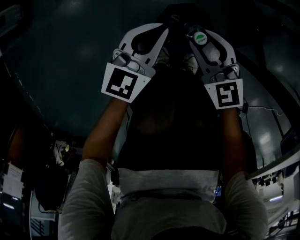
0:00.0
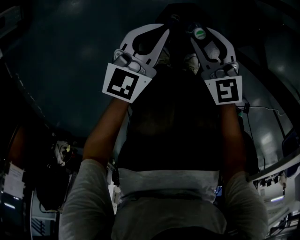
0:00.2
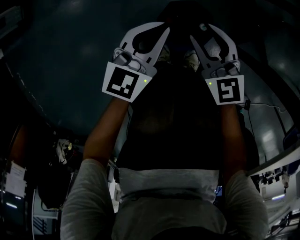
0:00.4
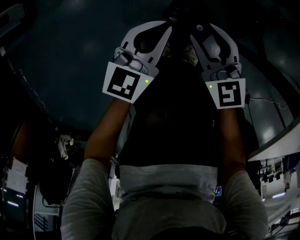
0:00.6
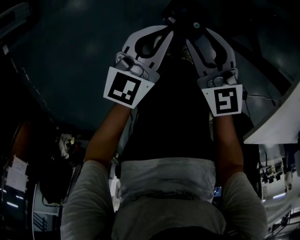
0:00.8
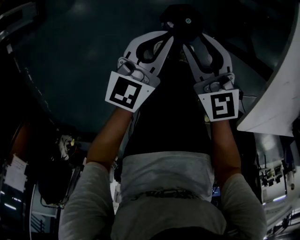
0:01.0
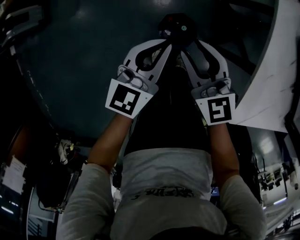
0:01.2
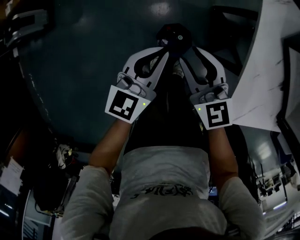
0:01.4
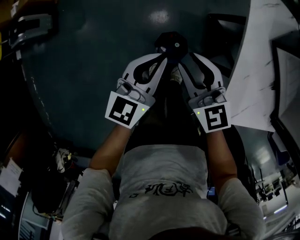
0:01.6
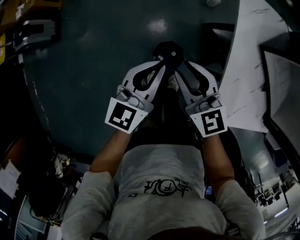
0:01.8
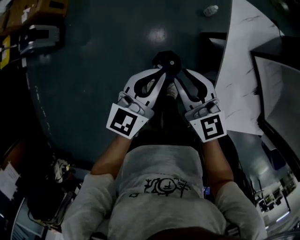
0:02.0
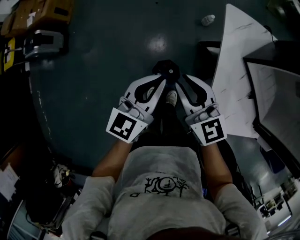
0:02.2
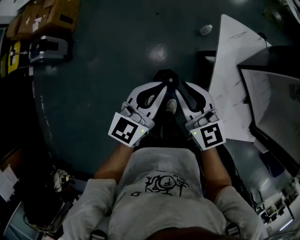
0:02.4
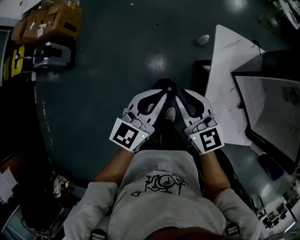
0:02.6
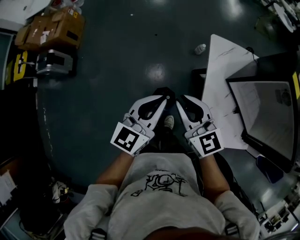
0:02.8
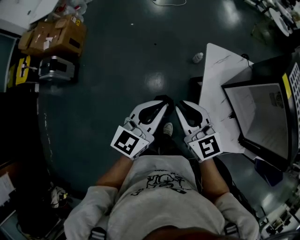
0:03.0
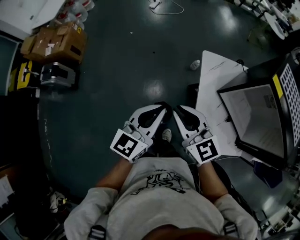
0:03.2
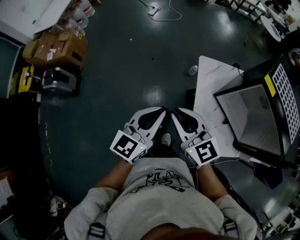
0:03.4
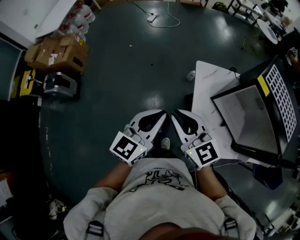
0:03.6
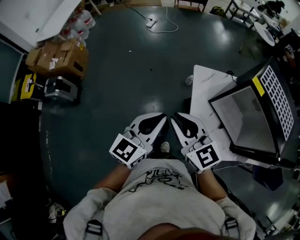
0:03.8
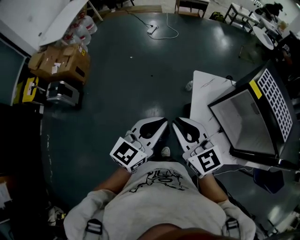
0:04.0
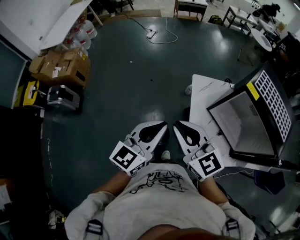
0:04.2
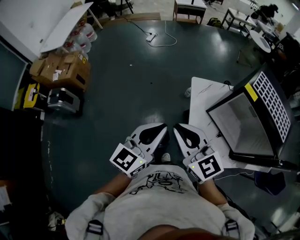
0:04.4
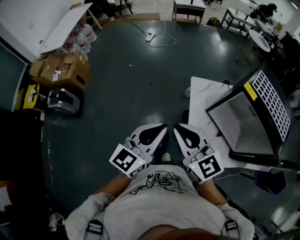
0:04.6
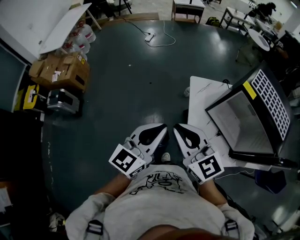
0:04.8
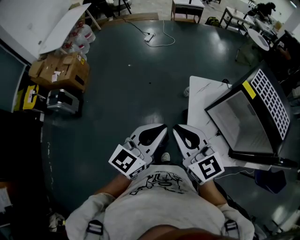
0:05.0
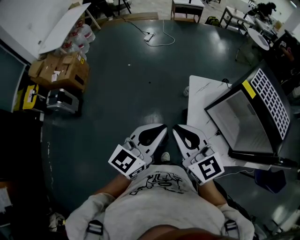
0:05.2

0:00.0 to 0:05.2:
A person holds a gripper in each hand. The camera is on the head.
0:00.0 to 0:01.8: The grippers both shift upward by some 40 cm.
0:01.8 to 0:03.4: The two grippers go roughly 30 cm upward.
0:03.4 to 0:05.2: The grippers both shift upward by approximately 10 cm.

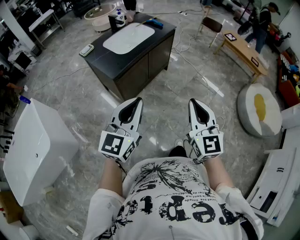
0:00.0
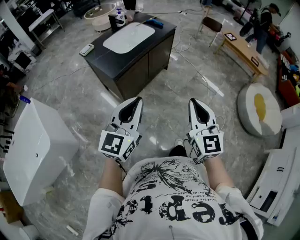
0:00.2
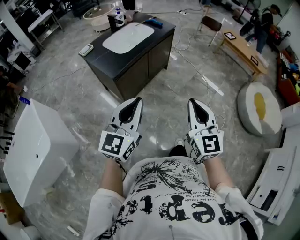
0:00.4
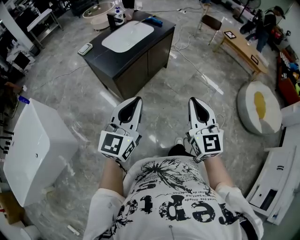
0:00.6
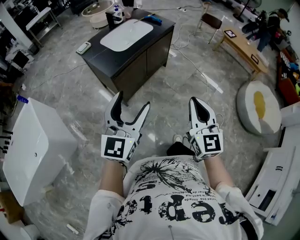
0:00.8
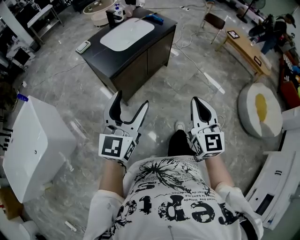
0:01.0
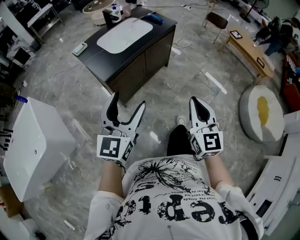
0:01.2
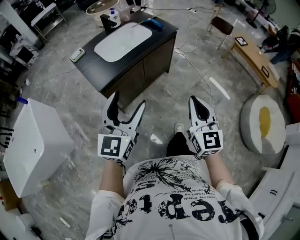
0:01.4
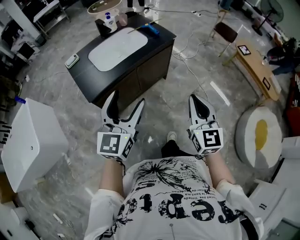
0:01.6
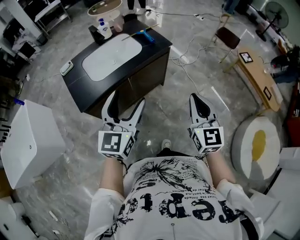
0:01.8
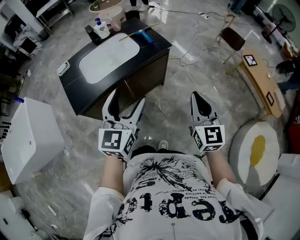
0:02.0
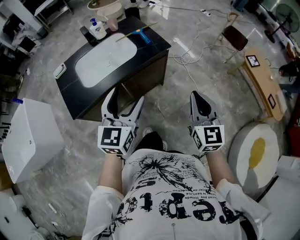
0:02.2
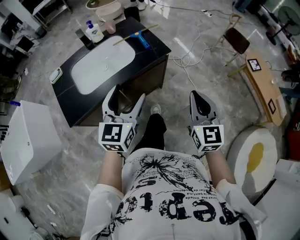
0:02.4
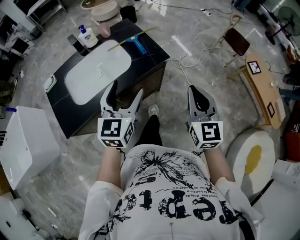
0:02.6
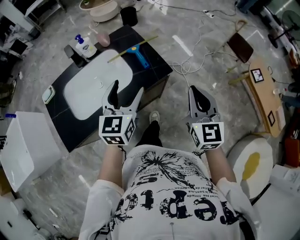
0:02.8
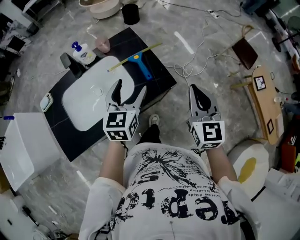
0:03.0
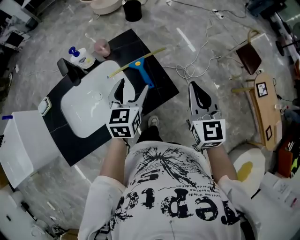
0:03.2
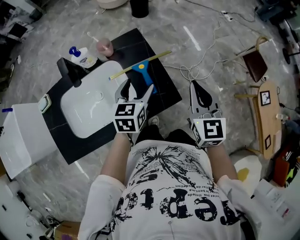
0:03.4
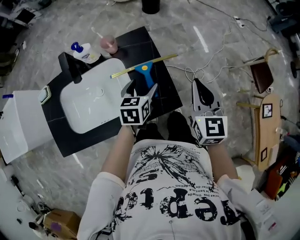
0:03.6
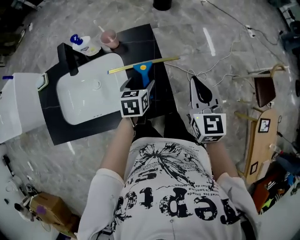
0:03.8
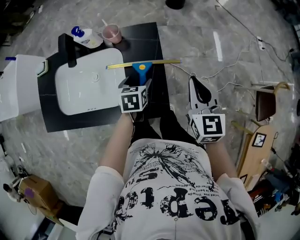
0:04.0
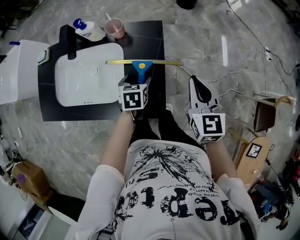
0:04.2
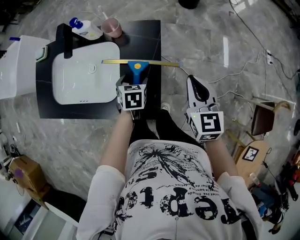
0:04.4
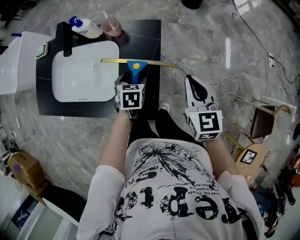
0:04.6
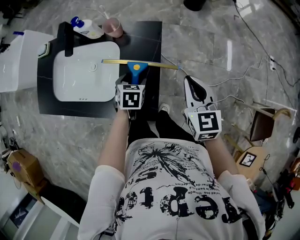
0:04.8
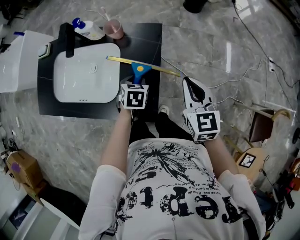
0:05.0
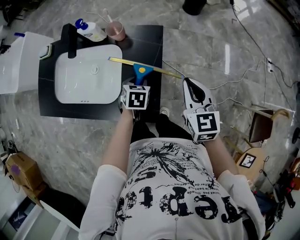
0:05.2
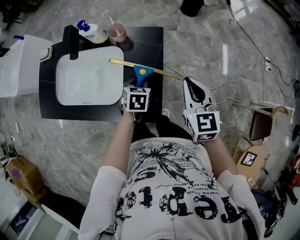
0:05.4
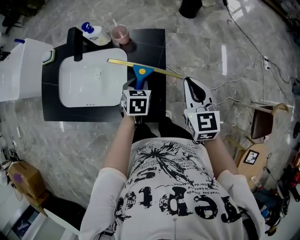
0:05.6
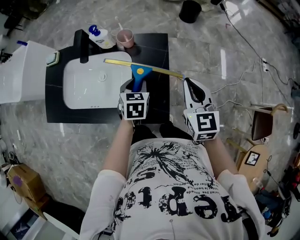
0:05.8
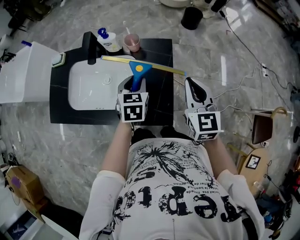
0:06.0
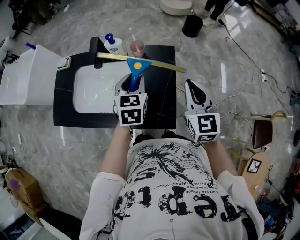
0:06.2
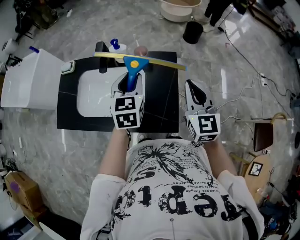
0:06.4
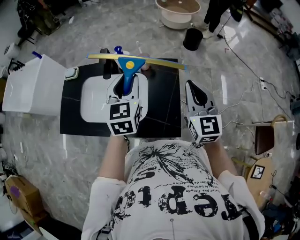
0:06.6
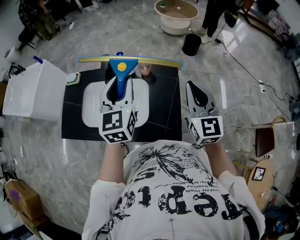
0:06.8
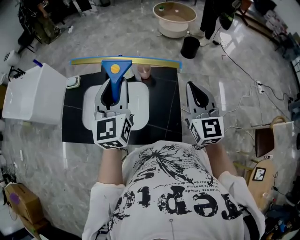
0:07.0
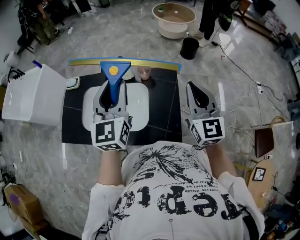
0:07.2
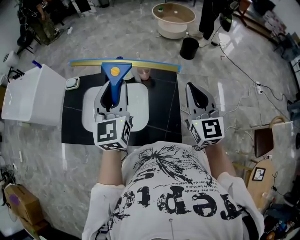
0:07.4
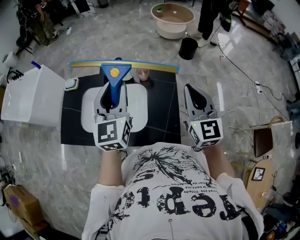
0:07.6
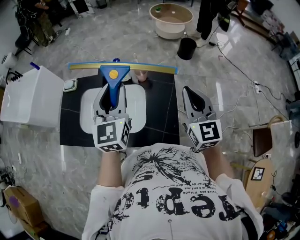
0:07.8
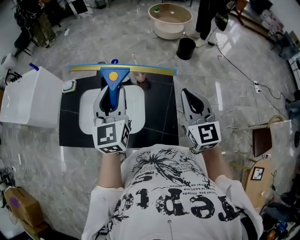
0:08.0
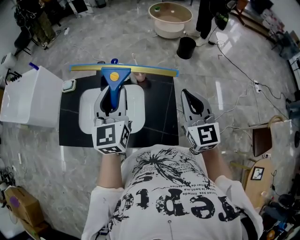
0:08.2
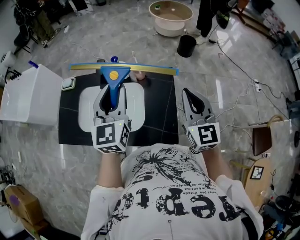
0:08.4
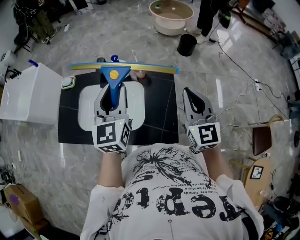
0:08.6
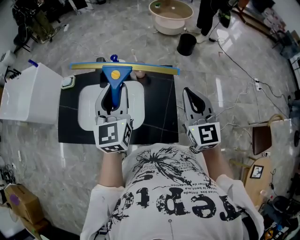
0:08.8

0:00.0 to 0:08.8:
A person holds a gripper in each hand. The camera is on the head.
0:00.0 to 0:01.4: The right gripper travels forward and to the right by approximately 25 cm. The left gripper shifts about 20 cm forward, and opens up.
0:01.4 to 0:03.0: The pair of grippers is taken forward, some 80 cm. The left gripper rotates roughly 20 degrees.
0:03.0 to 0:04.4: The right gripper ends up about 35 cm from where it was, and rotates some 40 degrees; the left gripper heads downward, covering approximately 25 cm, and tips its fingers downward by some 40 degrees.
0:04.4 to 0:05.8: The left gripper goes roughly 10 cm upward, and closes its fingers. Meanwhile the right gripper goes approximately 5 cm to the left.
0:05.8 to 0:07.4: The left gripper is displaced upward and to the left by some 35 cm, and tilts its fingers roughly 50 degrees upward. Meanwhile the right gripper is displaced upward and to the left by roughly 15 cm.
0:07.4 to 0:08.8: There are only small adjustments of the grippers.

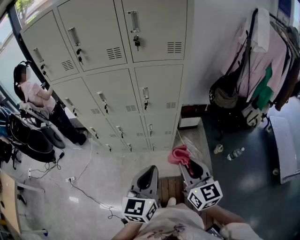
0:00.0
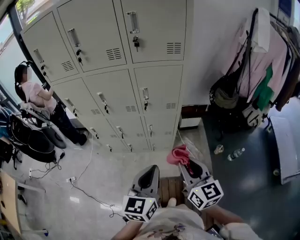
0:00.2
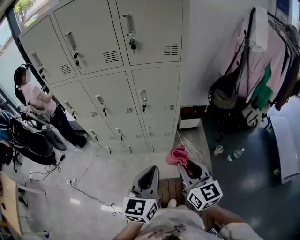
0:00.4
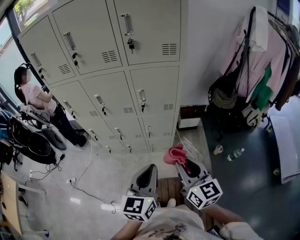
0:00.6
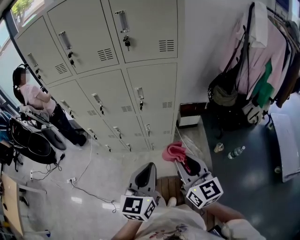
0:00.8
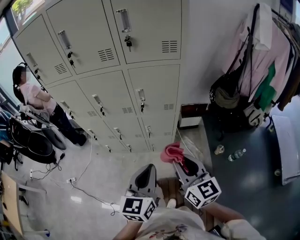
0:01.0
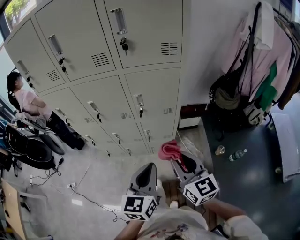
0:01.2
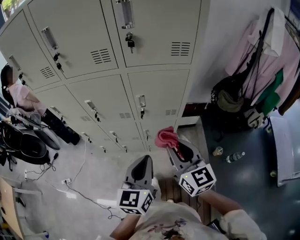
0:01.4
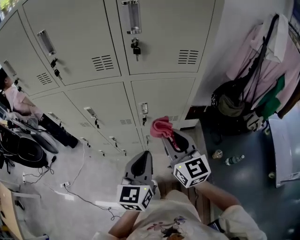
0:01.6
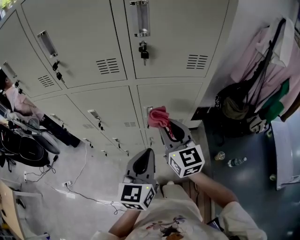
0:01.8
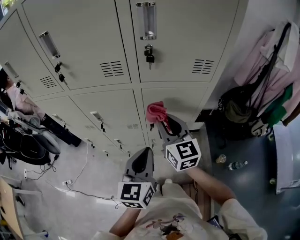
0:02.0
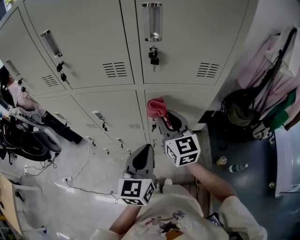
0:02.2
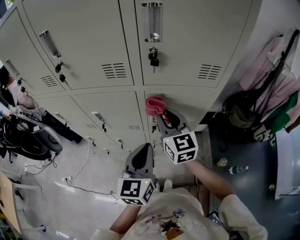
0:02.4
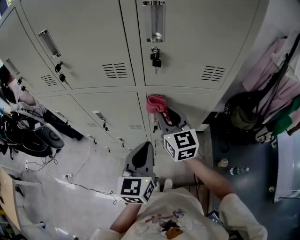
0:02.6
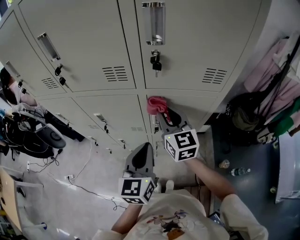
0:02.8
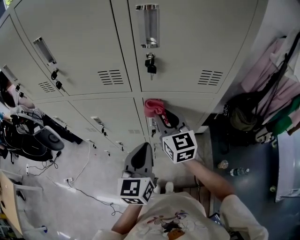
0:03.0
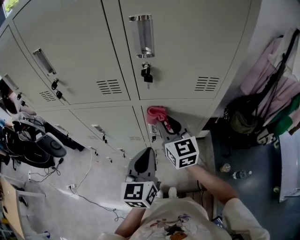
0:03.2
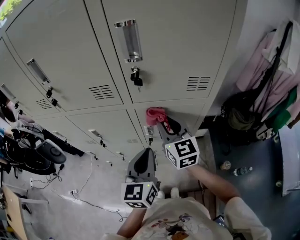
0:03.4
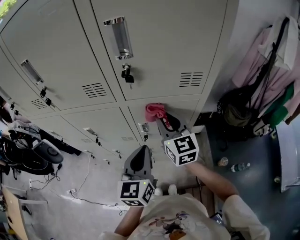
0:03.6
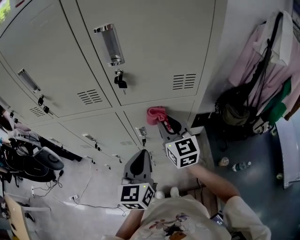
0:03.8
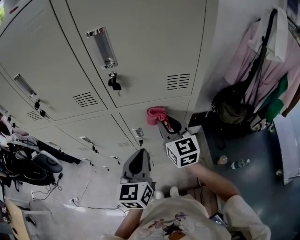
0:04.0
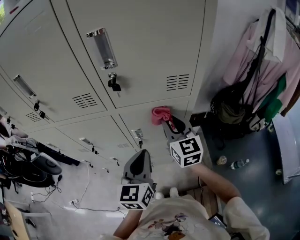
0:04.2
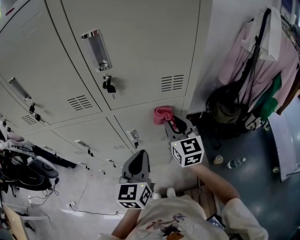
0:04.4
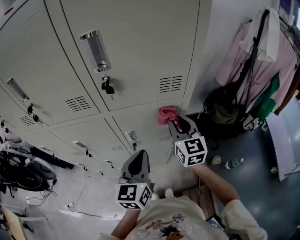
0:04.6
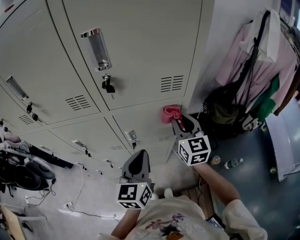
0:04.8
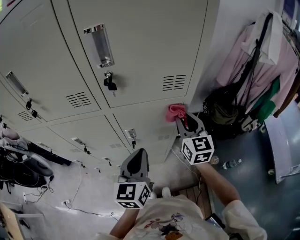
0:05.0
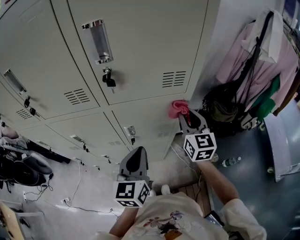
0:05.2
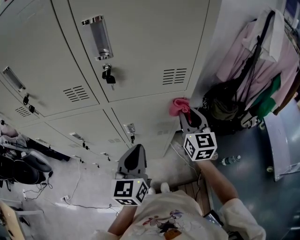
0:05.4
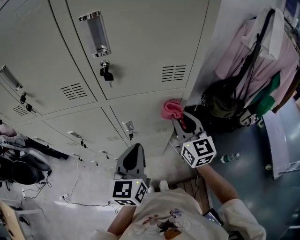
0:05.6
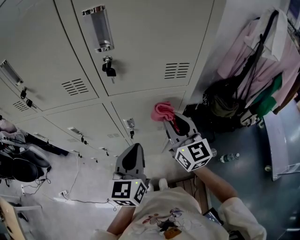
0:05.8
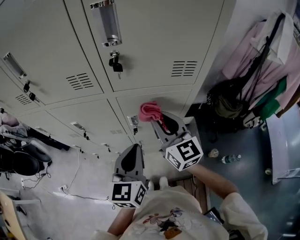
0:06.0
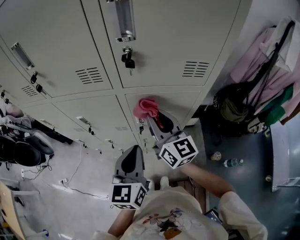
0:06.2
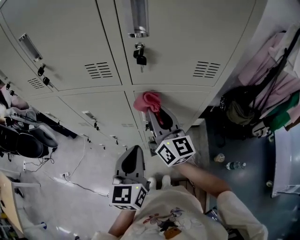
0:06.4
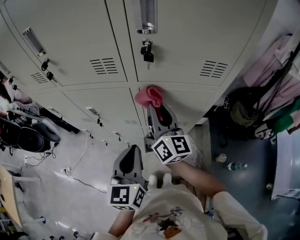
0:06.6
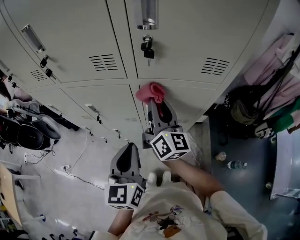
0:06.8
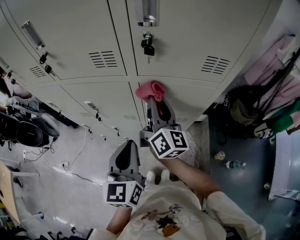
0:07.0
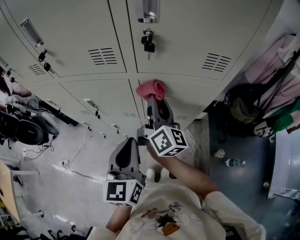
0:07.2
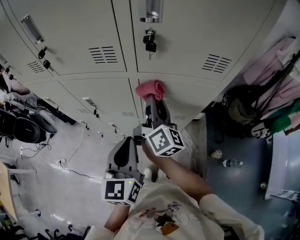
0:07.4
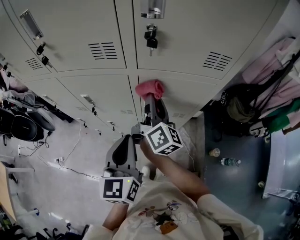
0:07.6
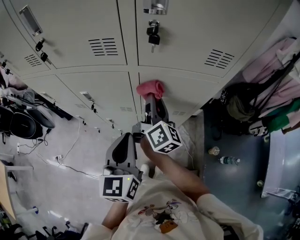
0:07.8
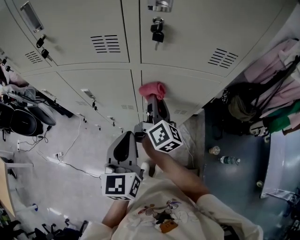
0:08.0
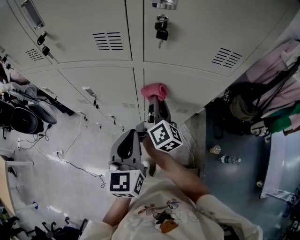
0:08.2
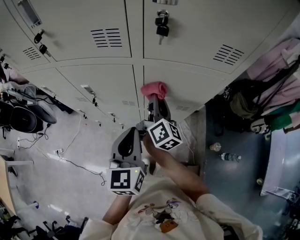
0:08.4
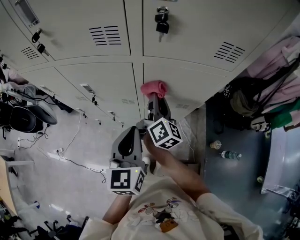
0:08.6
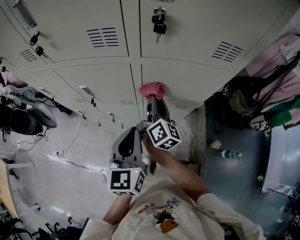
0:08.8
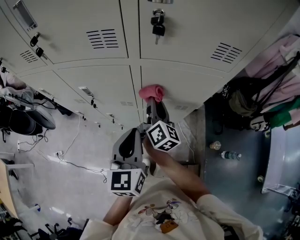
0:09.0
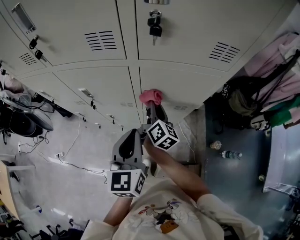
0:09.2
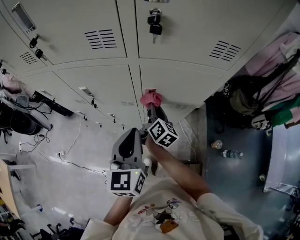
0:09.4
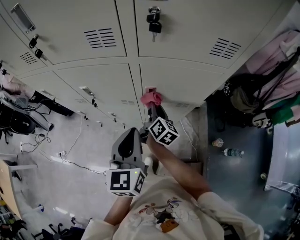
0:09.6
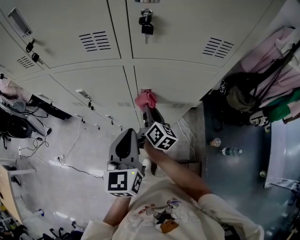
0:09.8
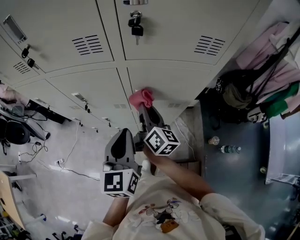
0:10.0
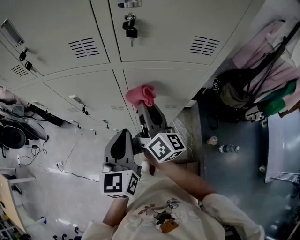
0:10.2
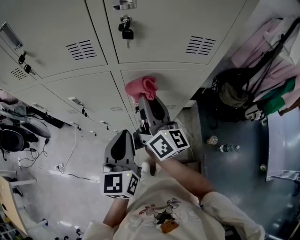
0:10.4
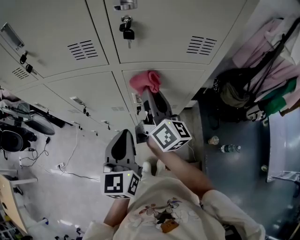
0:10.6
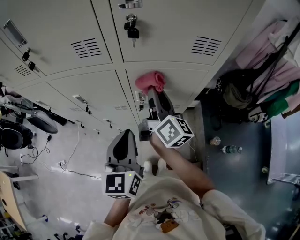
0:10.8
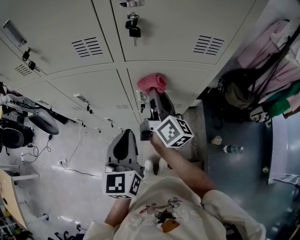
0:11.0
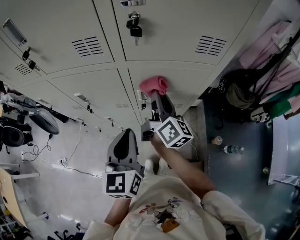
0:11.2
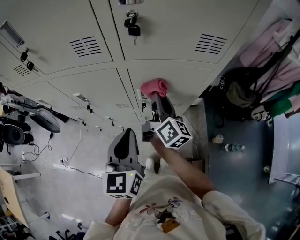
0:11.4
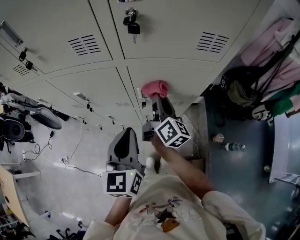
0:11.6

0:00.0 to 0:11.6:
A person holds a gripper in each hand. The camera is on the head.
0:00.0 to 0:01.4: The two grippers go roughly 20 cm forward.
0:01.4 to 0:02.8: The left gripper is displaced forward by about 15 cm, while the right gripper is displaced forward by roughly 25 cm.
0:02.8 to 0:04.4: The left gripper goes approximately 5 cm to the right; the right gripper heads to the right, covering about 15 cm.
0:04.4 to 0:05.8: The right gripper reaches about 5 cm to the right, then returns.
0:05.8 to 0:07.2: The right gripper goes roughly 15 cm to the left and forward, and changes its angle by roughly 40 degrees. The left gripper heads to the left, covering some 10 cm.
0:07.2 to 0:08.8: The right gripper goes roughly 10 cm downward.
0:08.8 to 0:10.2: The right gripper travels upward by some 5 cm.
0:10.2 to 0:11.6: The right gripper is displaced downward by approximately 5 cm.
